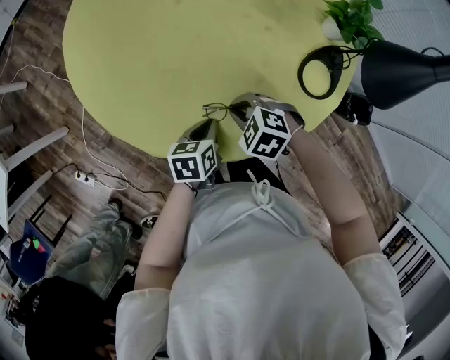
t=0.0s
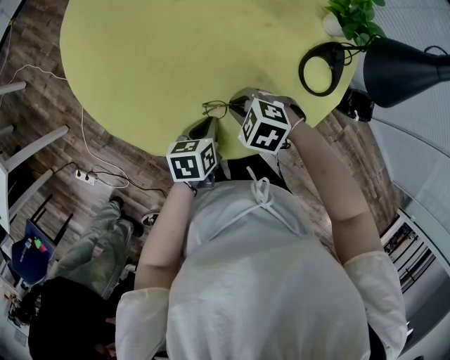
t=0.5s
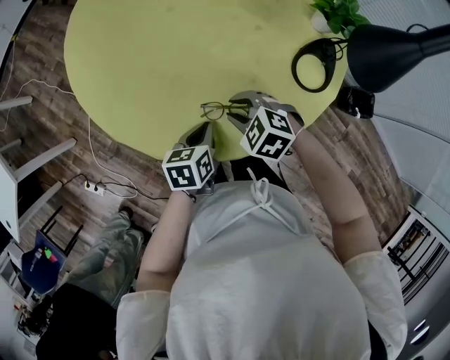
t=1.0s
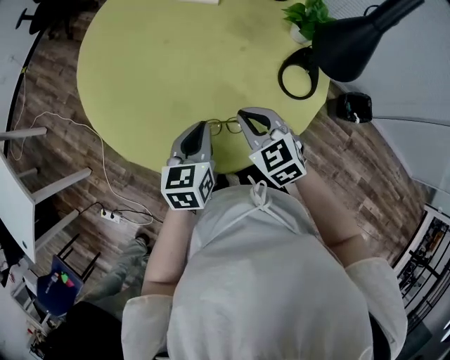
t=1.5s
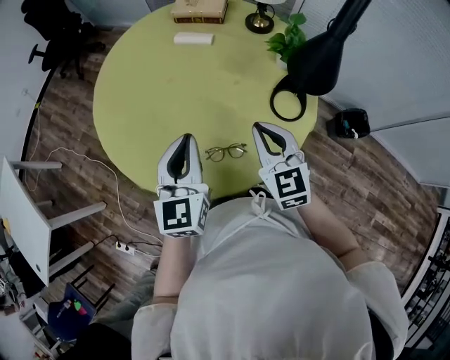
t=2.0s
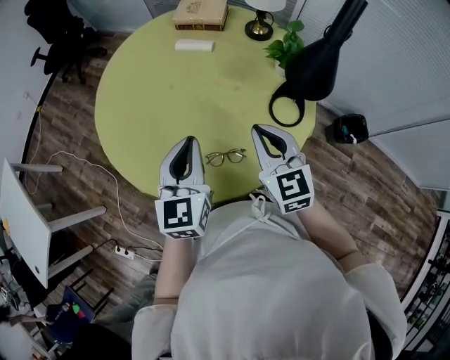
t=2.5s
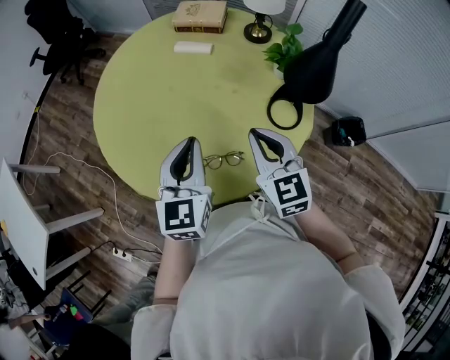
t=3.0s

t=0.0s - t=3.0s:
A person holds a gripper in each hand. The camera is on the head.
t=0.0s - t=1.5s: The grippers both shift upward by approximately 15 cm. The right gripper rotates some 50 degrees, and opens, then closes once more, while the left gripper rotates about 30 degrees.
t=1.5s - t=3.0s: Both grippers move upward, approximately 15 cm. The right gripper turns by approximately 30 degrees. The left gripper changes its angle by approximately 30 degrees.

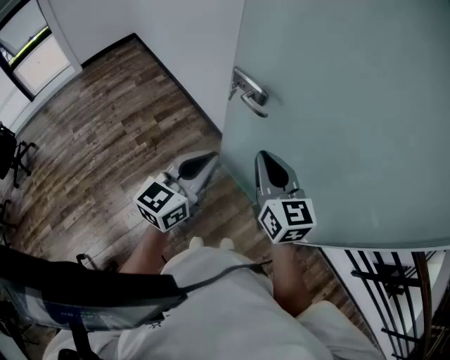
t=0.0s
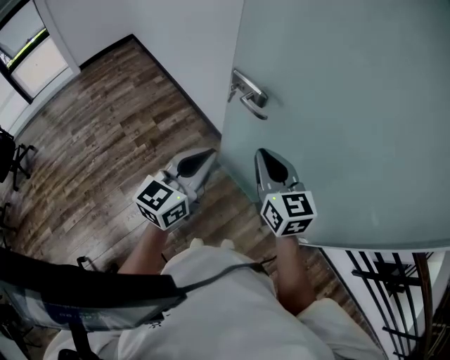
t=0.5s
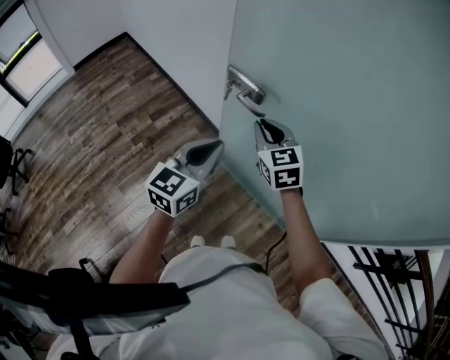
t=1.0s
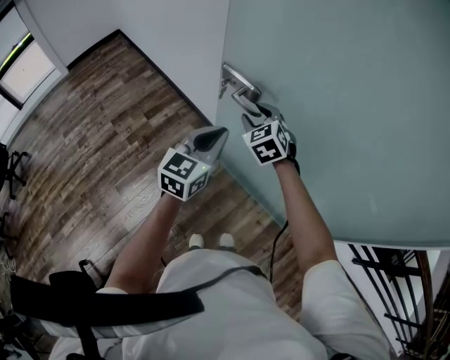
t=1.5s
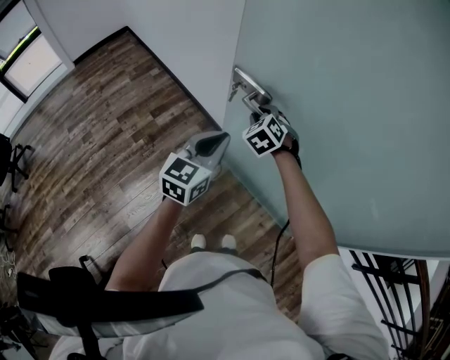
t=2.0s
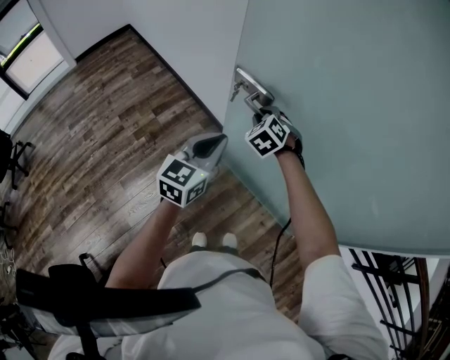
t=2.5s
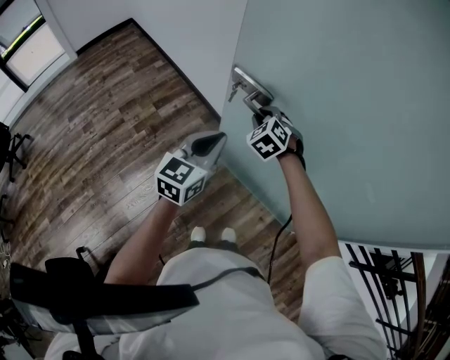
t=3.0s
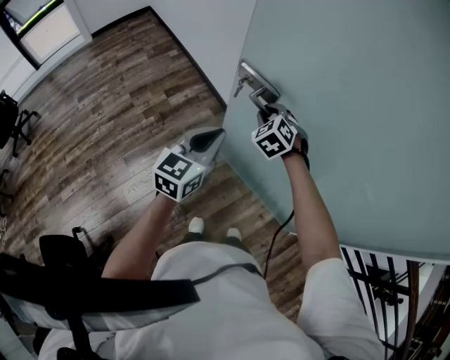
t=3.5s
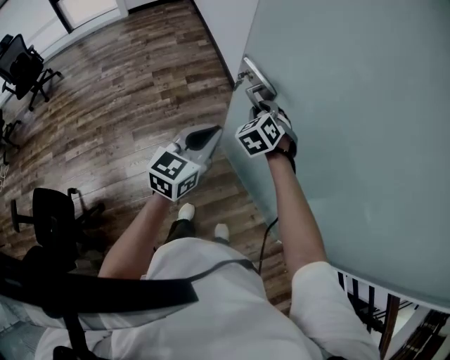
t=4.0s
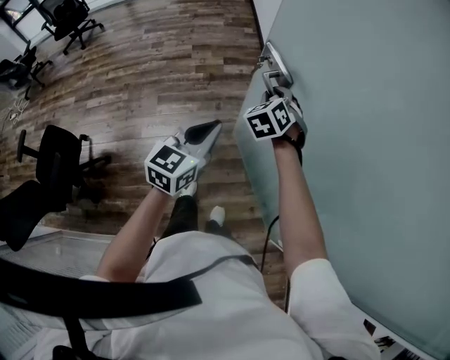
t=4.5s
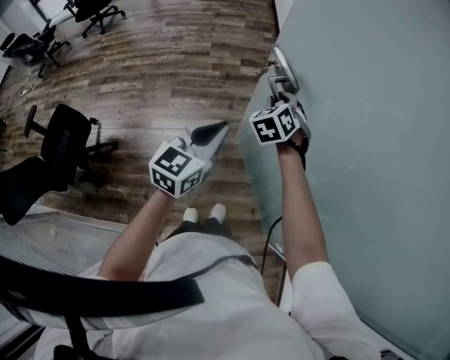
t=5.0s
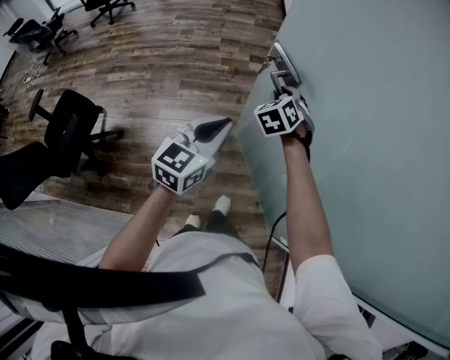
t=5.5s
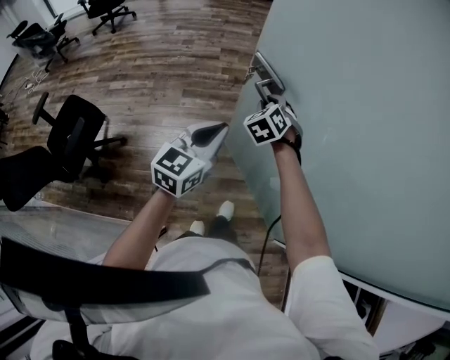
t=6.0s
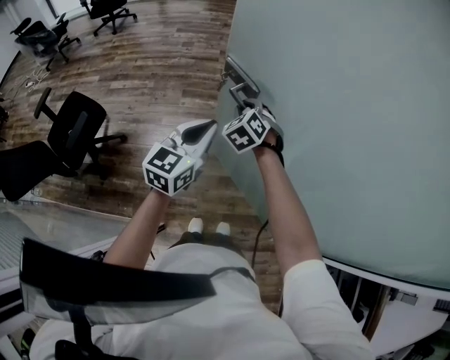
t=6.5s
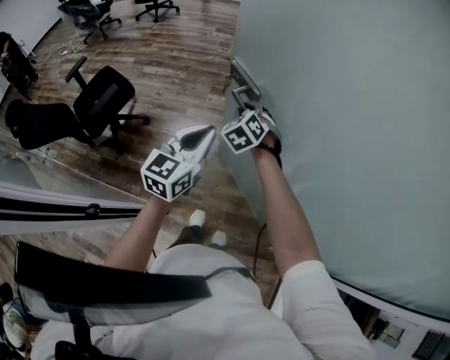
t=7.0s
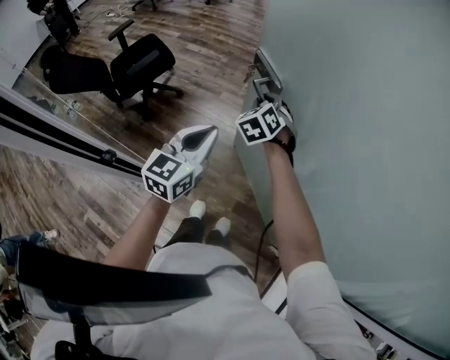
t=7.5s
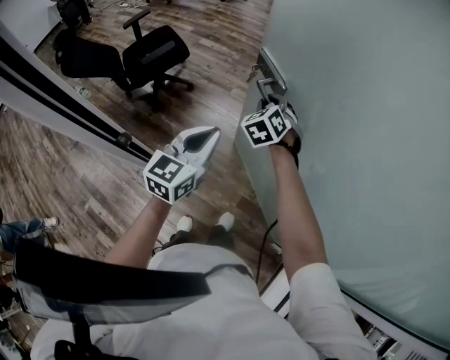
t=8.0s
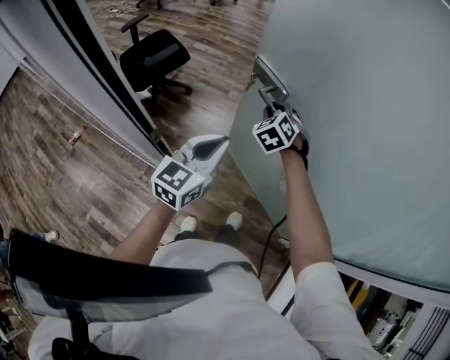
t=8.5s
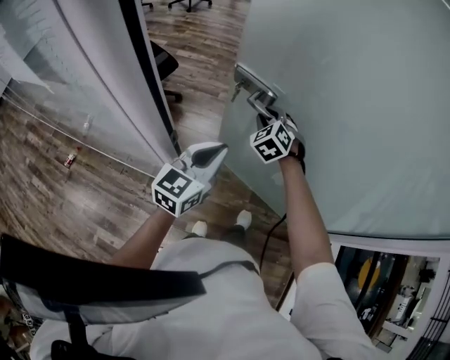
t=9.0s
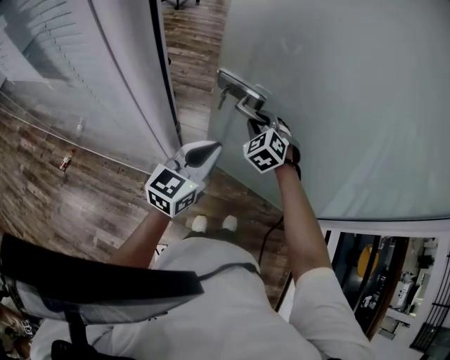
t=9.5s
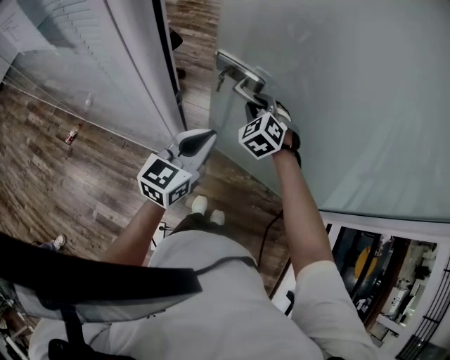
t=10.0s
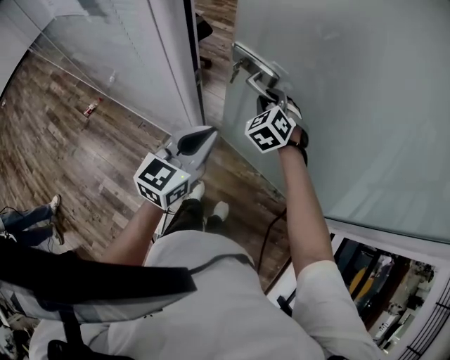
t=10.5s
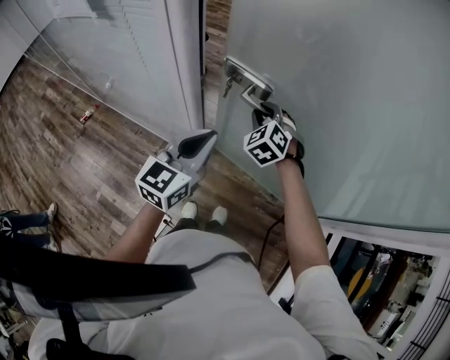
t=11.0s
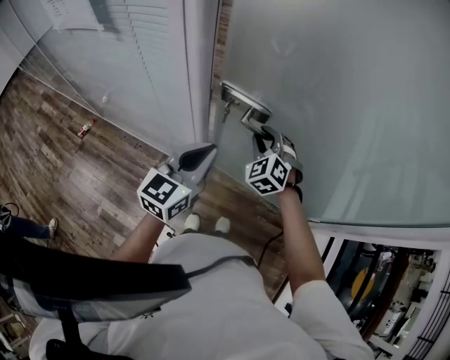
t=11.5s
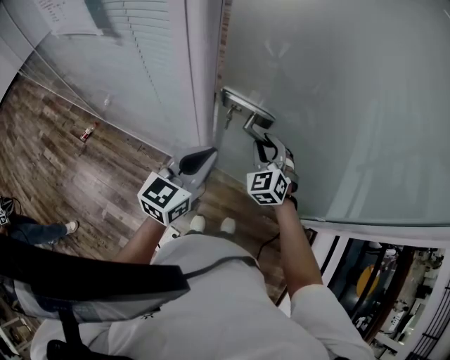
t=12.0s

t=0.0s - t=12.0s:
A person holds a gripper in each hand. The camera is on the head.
t=0.0s - t=2.0s: The right gripper shifts some 25 cm forward and downward, angles its fingers downward, by roughly 40 degrees, and opens up; the left gripper heads forward and downward, covering some 15 cm.
t=2.0s - t=4.0s: The two grippers go about 10 cm backward.
t=4.0s - t=6.0s: The left gripper shifts some 25 cm backward, and turns by about 20 degrees. Meanwhile the right gripper travels backward and to the left by about 25 cm.
t=6.0s - t=8.0s: The right gripper shifts by about 30 cm, and changes its angle by about 30 degrees; the left gripper ends up about 30 cm from where it was, and changes its angle by some 30 degrees.
t=8.0s - t=10.0s: The left gripper heads backward and to the left, covering approximately 25 cm. Meanwhile the right gripper travels backward by some 25 cm.
t=10.0s - t=12.0s: The right gripper travels backward by approximately 10 cm. The left gripper goes some 10 cm backward and to the left.

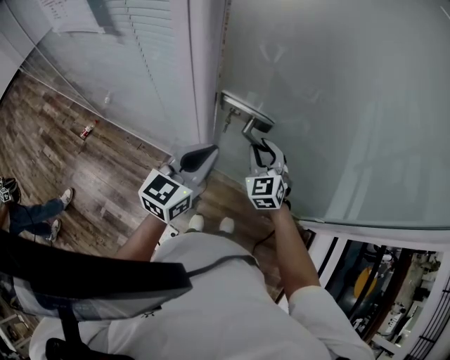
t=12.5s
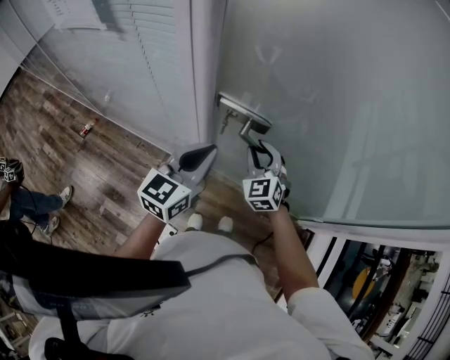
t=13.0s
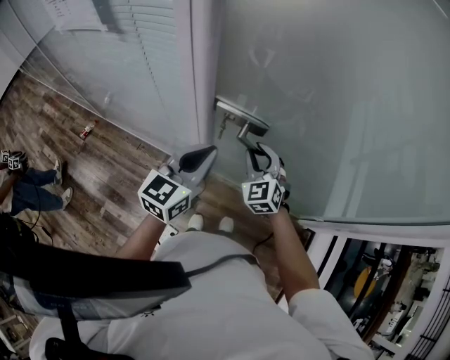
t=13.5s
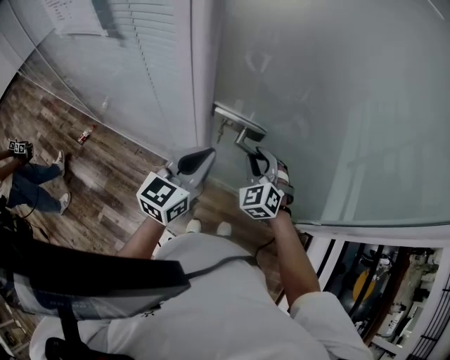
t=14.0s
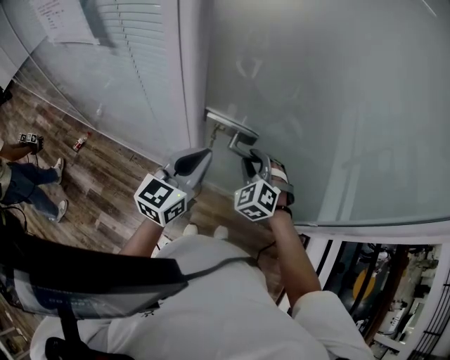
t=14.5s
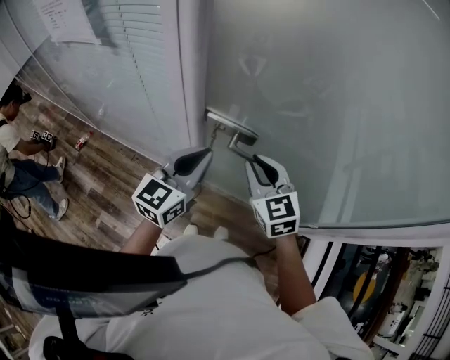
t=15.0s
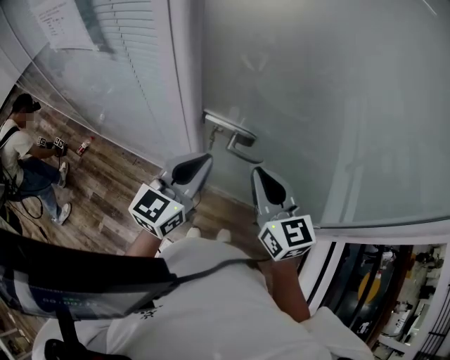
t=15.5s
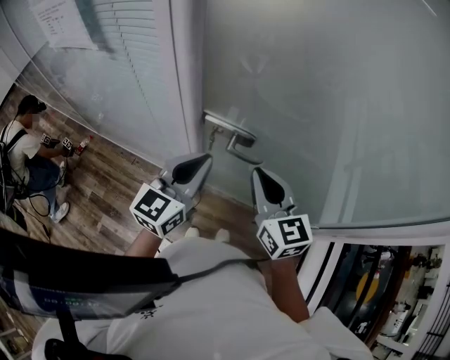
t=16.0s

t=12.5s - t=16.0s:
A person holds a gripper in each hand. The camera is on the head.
t=12.5s - t=14.5s: The right gripper changes its angle by approximately 30 degrees.
t=14.5s - t=16.0s: The right gripper travels upward and backward by some 15 cm, rotates around the line of its fingers by some 50 degrees, clockwise from behind, and closes up.

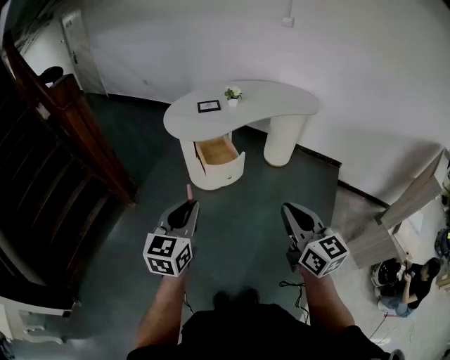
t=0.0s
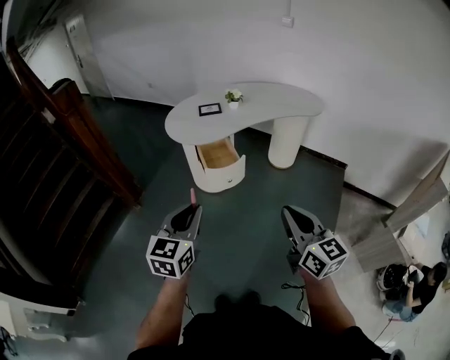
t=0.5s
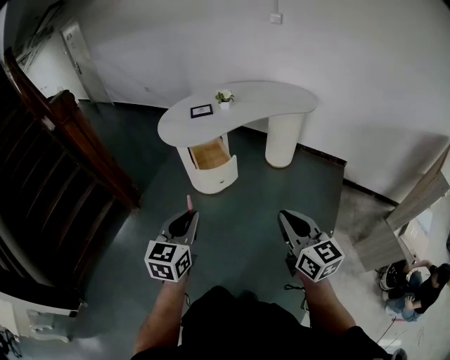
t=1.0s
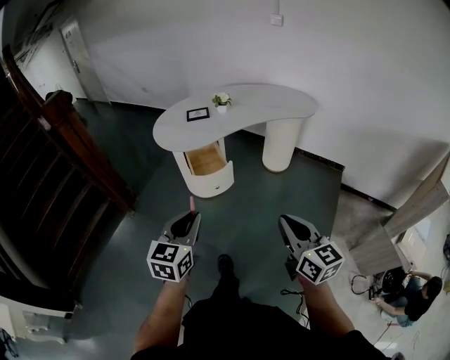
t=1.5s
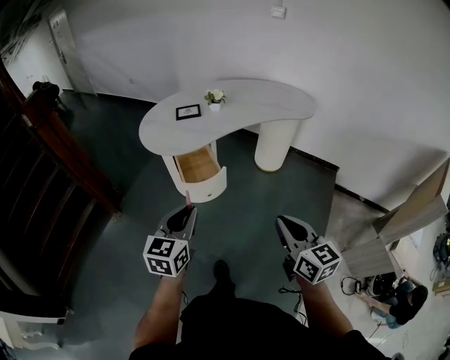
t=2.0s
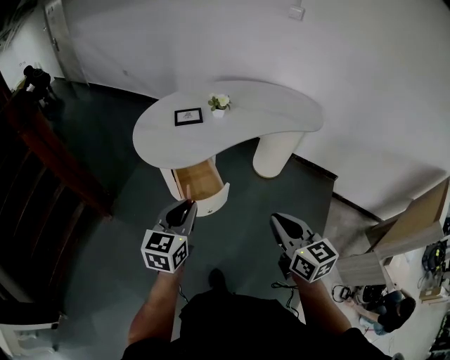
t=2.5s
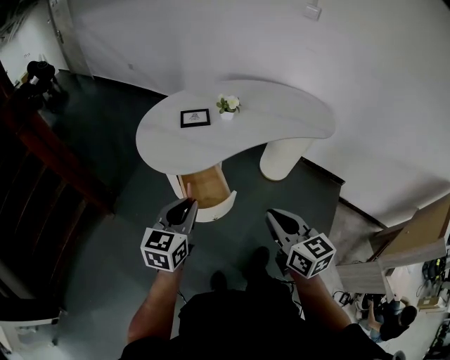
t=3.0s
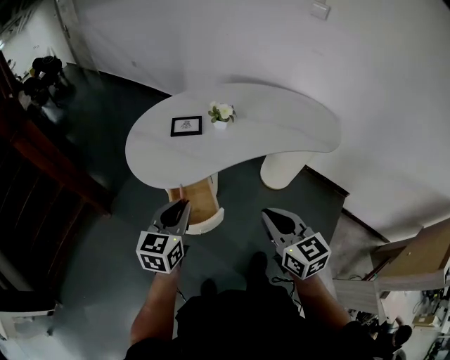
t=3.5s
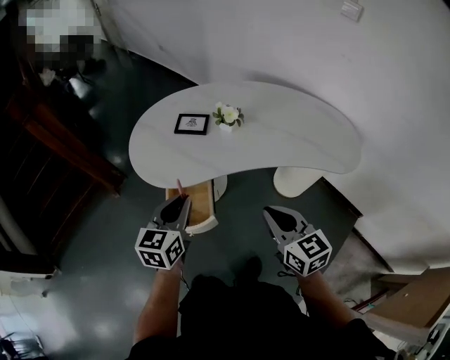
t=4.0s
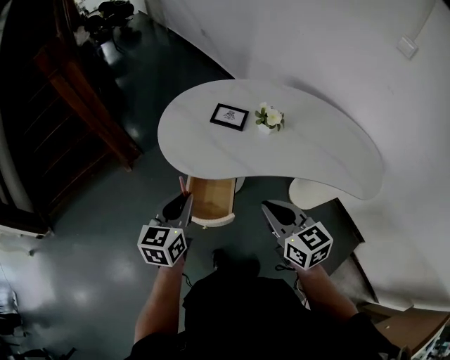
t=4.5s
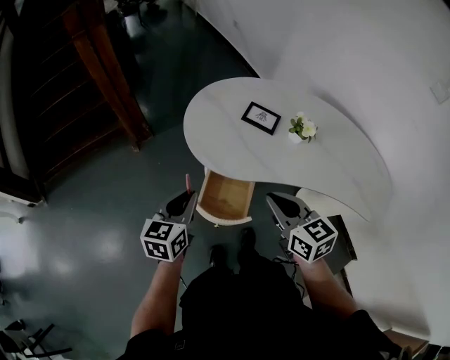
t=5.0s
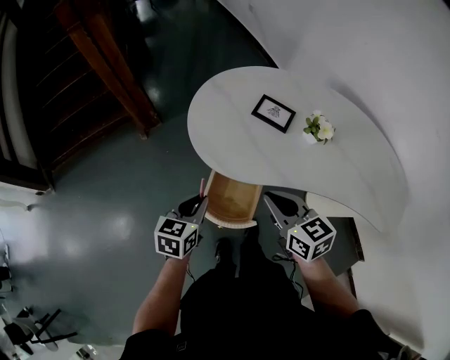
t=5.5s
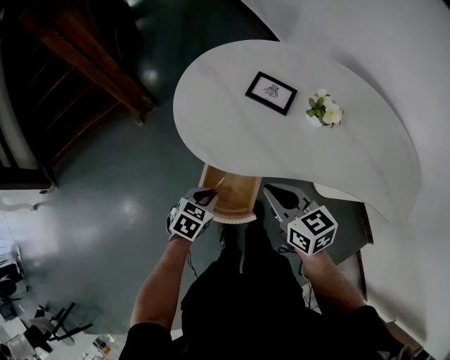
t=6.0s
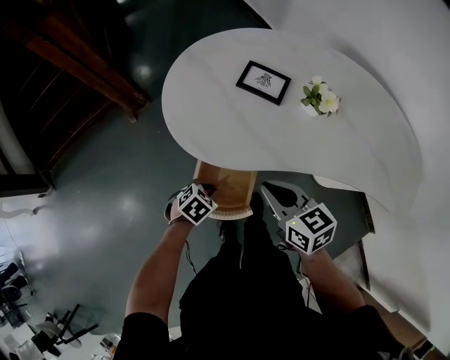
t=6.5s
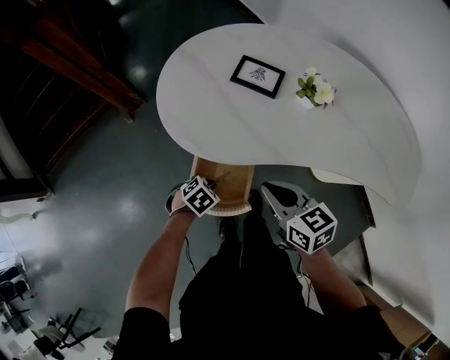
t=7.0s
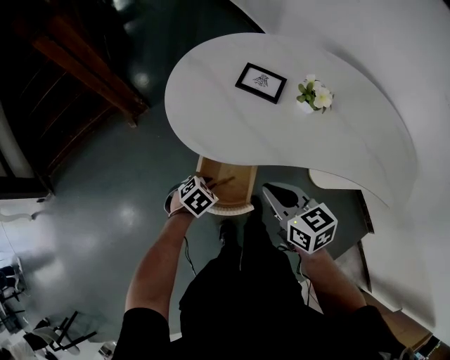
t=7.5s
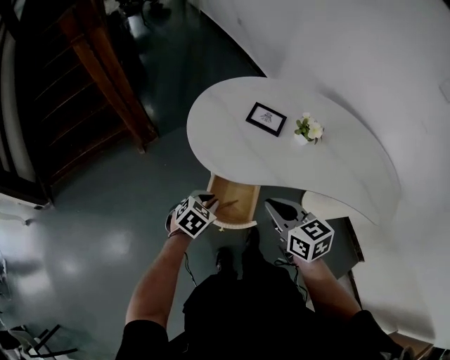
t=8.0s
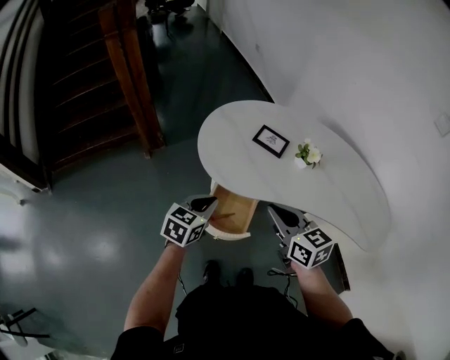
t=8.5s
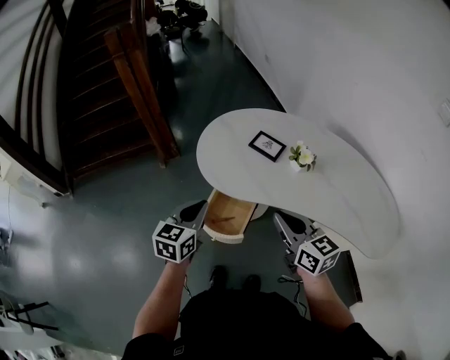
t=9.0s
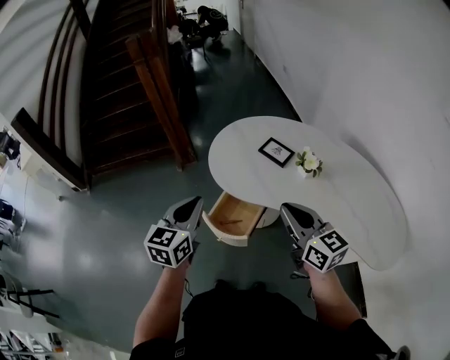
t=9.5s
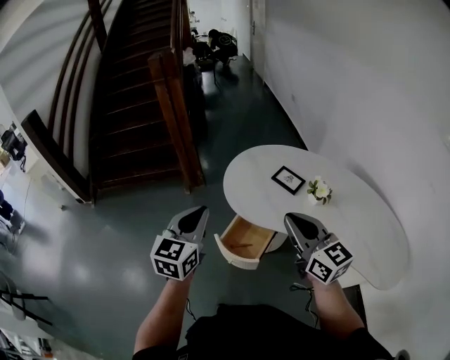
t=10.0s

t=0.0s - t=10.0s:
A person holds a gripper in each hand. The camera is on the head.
t=0.0s - t=2.0s: Both grippers travel together forward, to the right and downward, about 20 cm.
t=2.0s - t=4.0s: The grippers both shift forward by roughly 35 cm. The right gripper turns by approximately 30 degrees; the left gripper turns by roughly 20 degrees.
t=4.0s - t=6.0s: The left gripper shifts about 25 cm downward, and tips its fingers downward by about 30 degrees; the right gripper heads forward, to the left and downward, covering roughly 25 cm, and swivels some 30 degrees.
t=6.0s - t=8.0s: The right gripper goes some 10 cm upward and backward; the left gripper is displaced upward by approximately 5 cm.
t=8.0s - t=10.0s: The left gripper shifts some 35 cm upward, and tilts its fingers some 40 degrees upward, while the right gripper travels upward by roughly 20 cm, and changes its angle by about 30 degrees.
